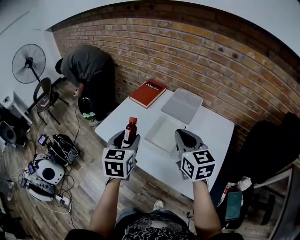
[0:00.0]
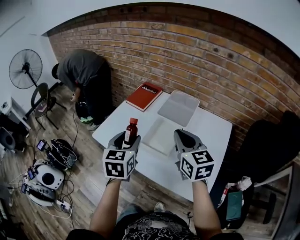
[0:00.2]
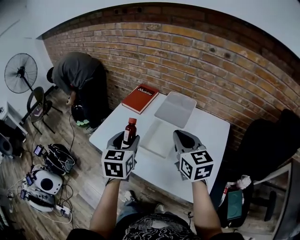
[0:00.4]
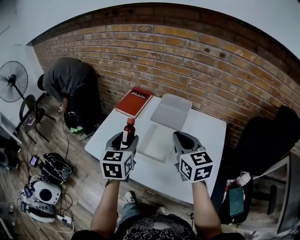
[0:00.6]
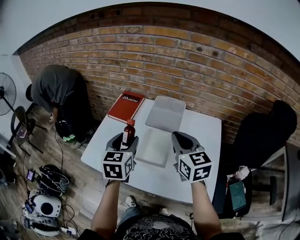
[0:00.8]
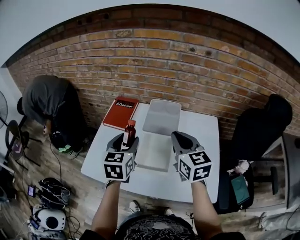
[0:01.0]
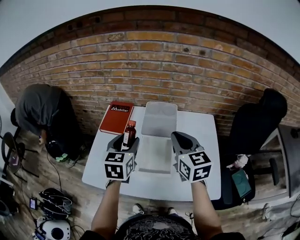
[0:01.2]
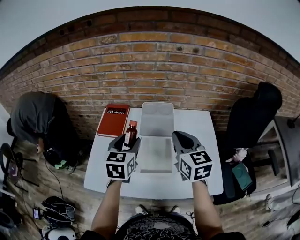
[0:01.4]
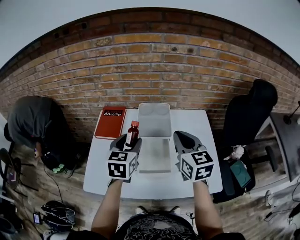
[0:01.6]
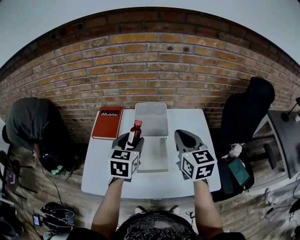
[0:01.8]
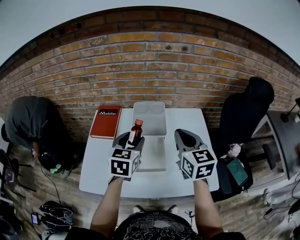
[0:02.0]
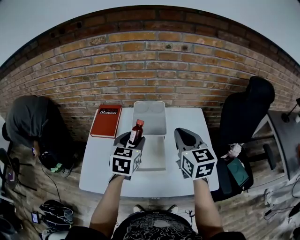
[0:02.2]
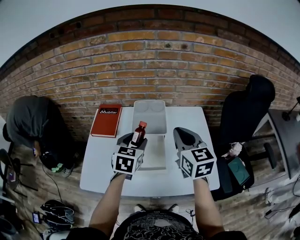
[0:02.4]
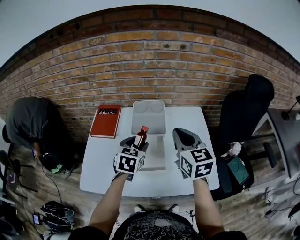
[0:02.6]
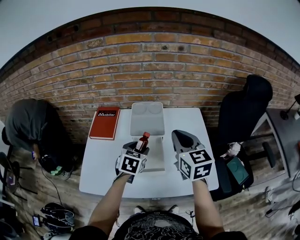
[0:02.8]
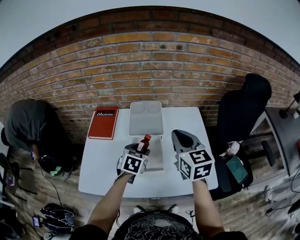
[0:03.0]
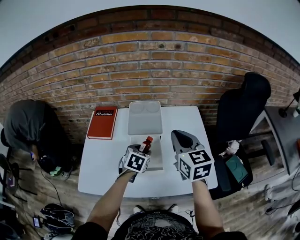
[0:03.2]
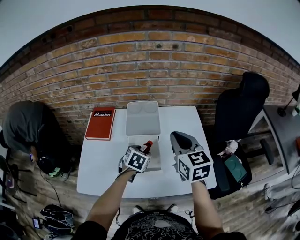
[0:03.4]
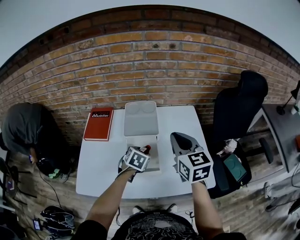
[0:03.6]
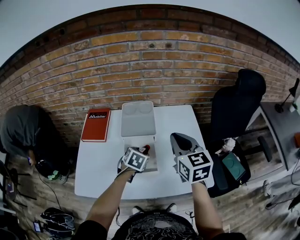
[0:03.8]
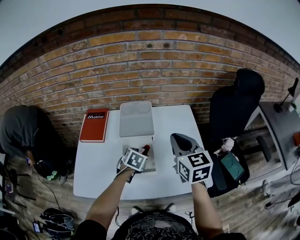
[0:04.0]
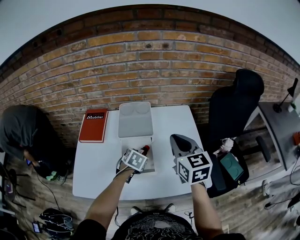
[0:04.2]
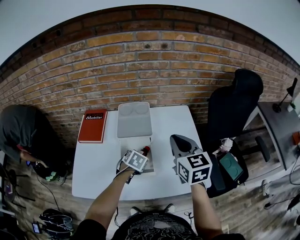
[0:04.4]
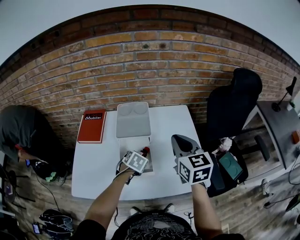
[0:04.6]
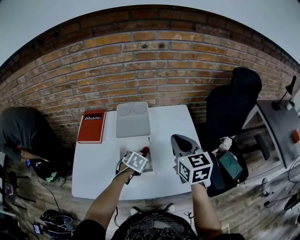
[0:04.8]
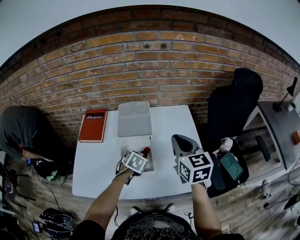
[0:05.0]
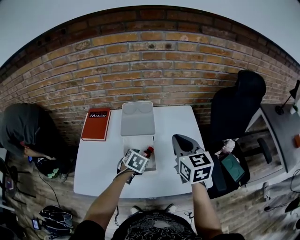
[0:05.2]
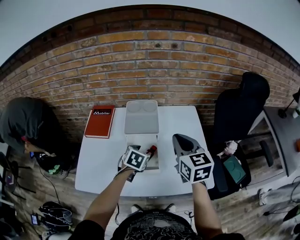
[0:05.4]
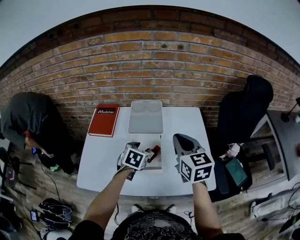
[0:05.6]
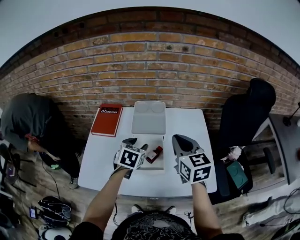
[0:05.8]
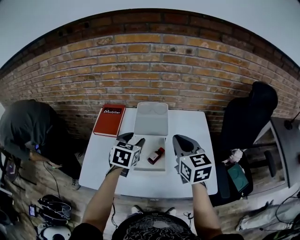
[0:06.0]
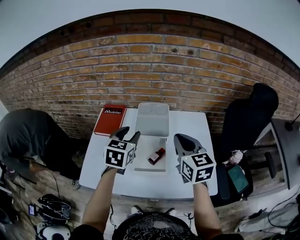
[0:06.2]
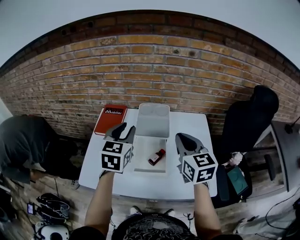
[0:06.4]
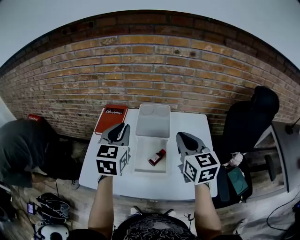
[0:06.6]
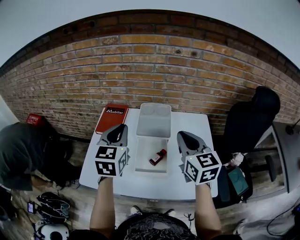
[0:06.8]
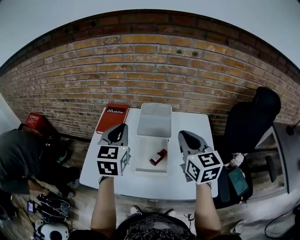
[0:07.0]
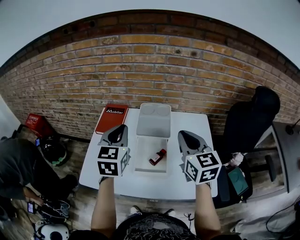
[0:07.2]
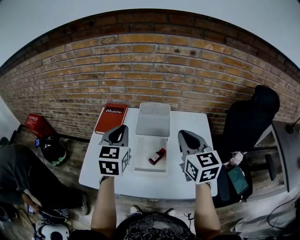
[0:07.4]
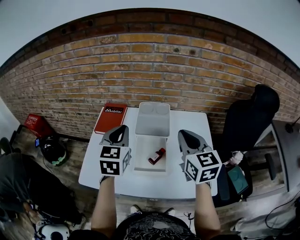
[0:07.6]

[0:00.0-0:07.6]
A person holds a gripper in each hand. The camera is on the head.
0:00.0 to 0:01.6: The left gripper moves roughly 20 cm, and changes its angle by about 30 degrees, while the right gripper ends up roughly 10 cm from where it was, and changes its angle by approximately 30 degrees.
0:01.6 to 0:03.0: The left gripper goes roughly 15 cm downward and to the right, and swivels some 20 degrees.
0:03.0 to 0:04.6: The right gripper shifts approximately 5 cm to the right; the left gripper travels downward by approximately 10 cm, and rotates roughly 20 degrees.
0:04.6 to 0:06.0: The left gripper is displaced upward and to the left by about 20 cm, and turns by about 30 degrees, while the right gripper heads to the left, covering approximately 5 cm.
0:06.0 to 0:07.6: The left gripper is displaced upward and to the left by about 10 cm, turns by roughly 20 degrees, and closes up.

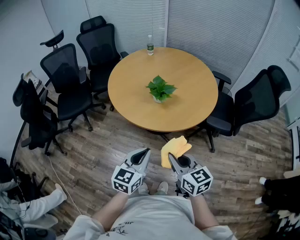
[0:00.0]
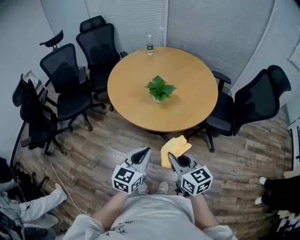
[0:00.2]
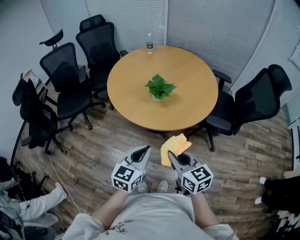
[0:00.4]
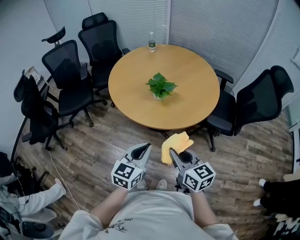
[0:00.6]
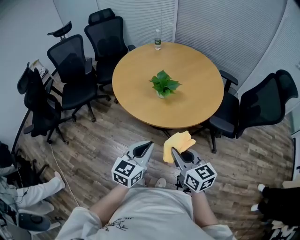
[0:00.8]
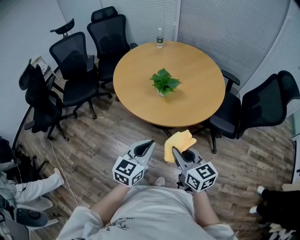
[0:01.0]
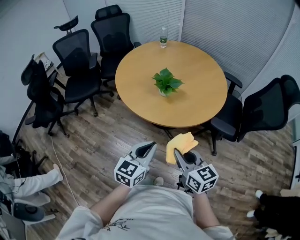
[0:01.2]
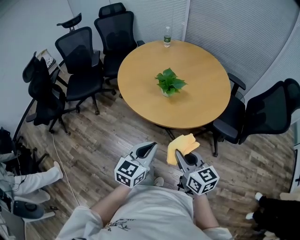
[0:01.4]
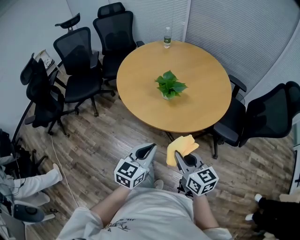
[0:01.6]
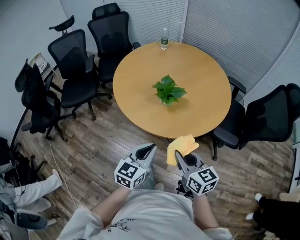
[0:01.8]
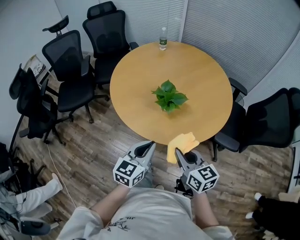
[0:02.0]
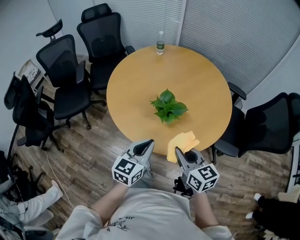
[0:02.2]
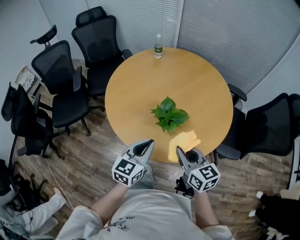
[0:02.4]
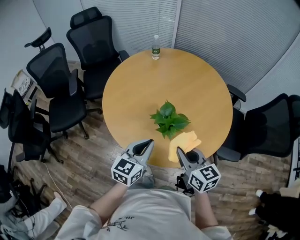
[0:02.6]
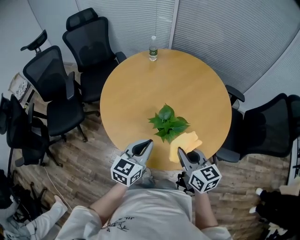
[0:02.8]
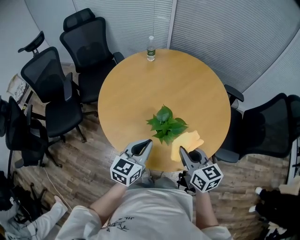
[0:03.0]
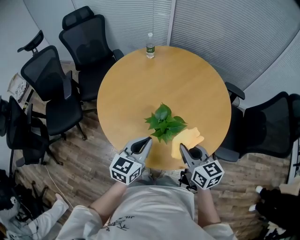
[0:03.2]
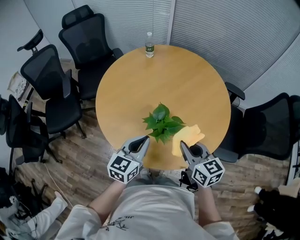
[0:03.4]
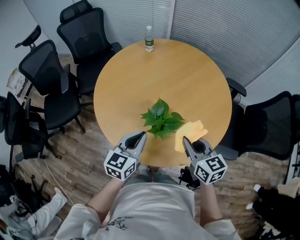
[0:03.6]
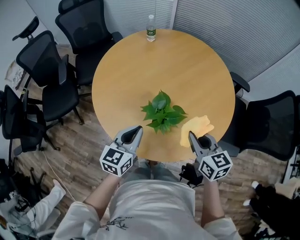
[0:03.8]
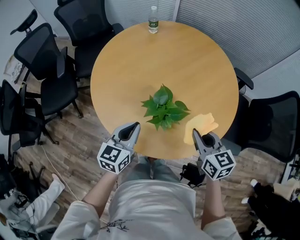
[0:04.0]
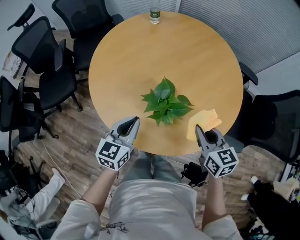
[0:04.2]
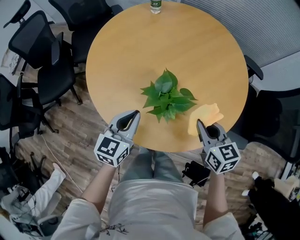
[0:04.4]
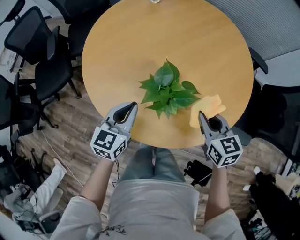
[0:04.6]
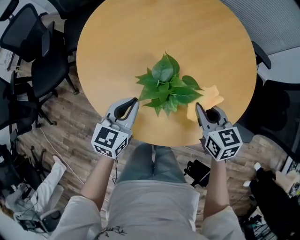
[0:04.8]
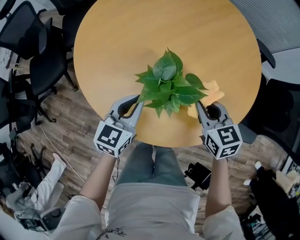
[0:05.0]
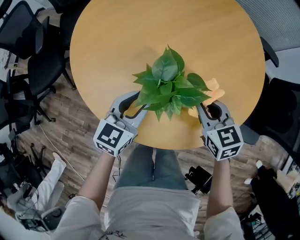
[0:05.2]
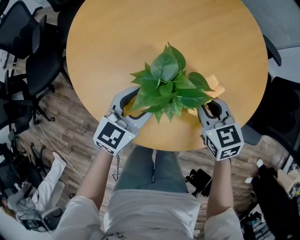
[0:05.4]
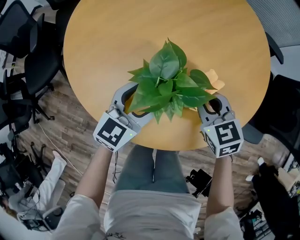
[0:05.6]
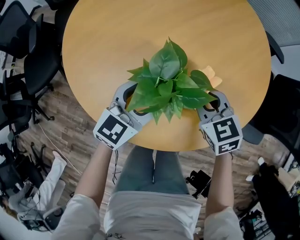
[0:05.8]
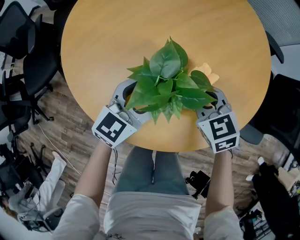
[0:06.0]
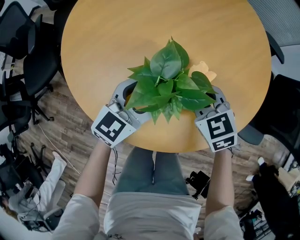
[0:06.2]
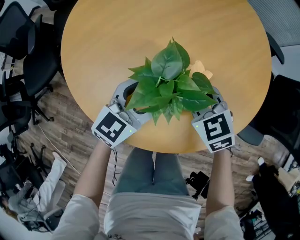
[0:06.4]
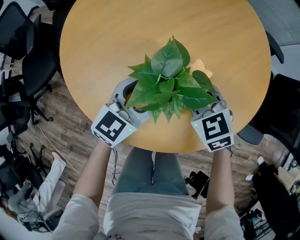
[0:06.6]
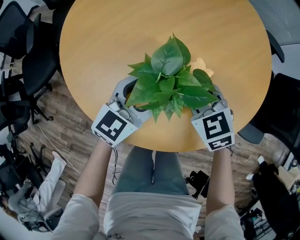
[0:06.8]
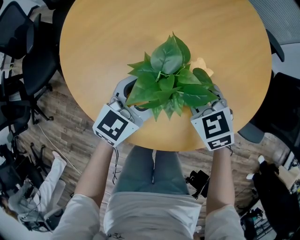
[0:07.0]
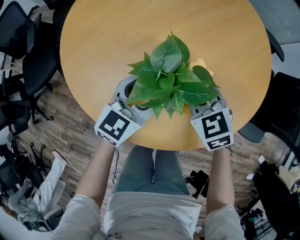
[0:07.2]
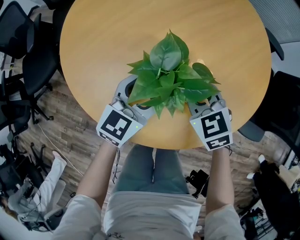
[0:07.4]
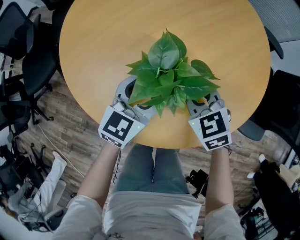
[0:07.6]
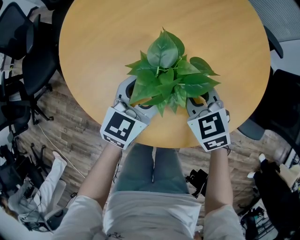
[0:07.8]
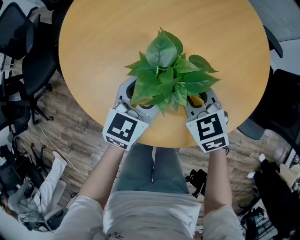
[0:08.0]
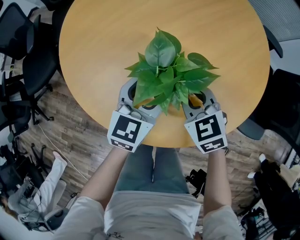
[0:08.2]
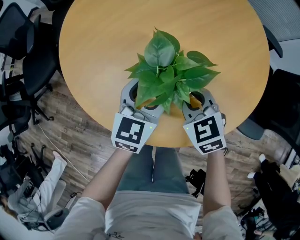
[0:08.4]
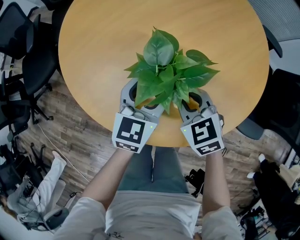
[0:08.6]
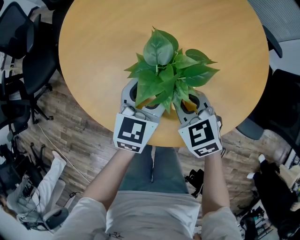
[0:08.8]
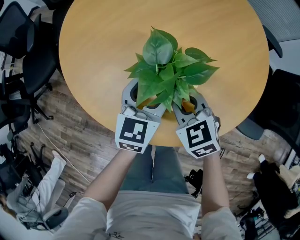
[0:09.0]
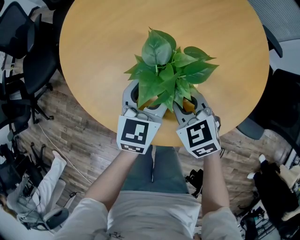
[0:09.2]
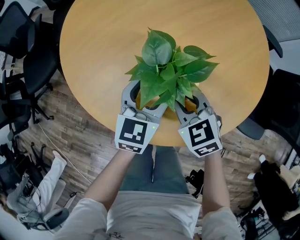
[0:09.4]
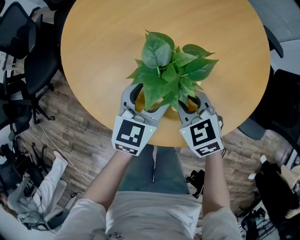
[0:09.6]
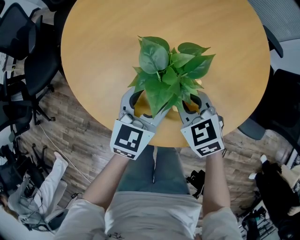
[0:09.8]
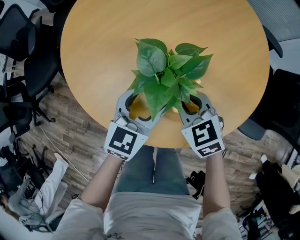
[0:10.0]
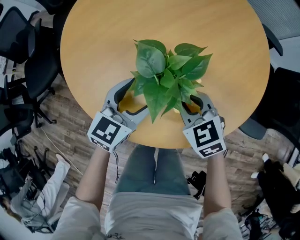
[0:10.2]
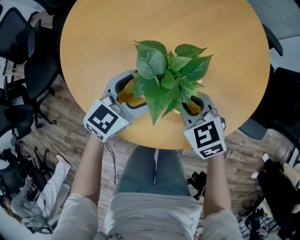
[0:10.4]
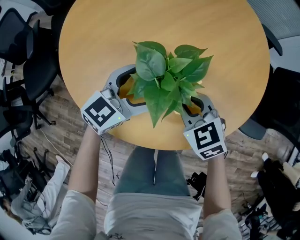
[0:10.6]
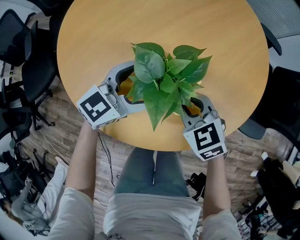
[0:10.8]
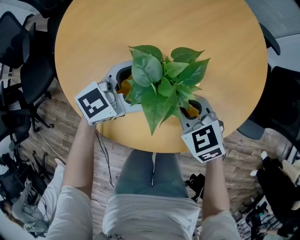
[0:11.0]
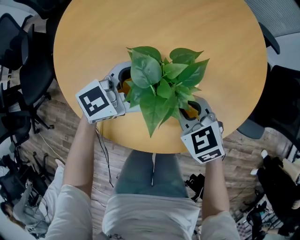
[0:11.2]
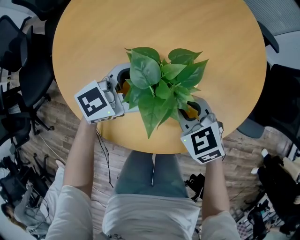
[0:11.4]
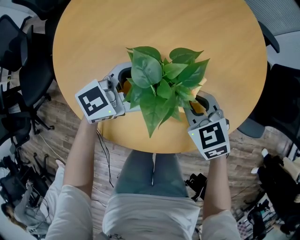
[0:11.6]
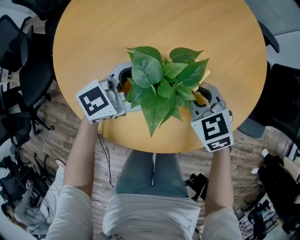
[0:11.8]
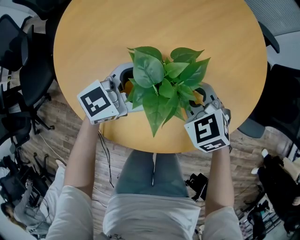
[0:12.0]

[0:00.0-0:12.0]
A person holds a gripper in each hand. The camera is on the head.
0:00.0 to 0:01.6: The left gripper moves approximately 5 cm. Meanwhile the right gripper moves approximately 5 cm.
0:01.6 to 0:03.0: Both grippers move forward, about 30 cm.
0:03.0 to 0:04.4: The right gripper heads downward, to the right and forward, covering approximately 10 cm, while the left gripper heads downward, covering approximately 10 cm.
0:04.4 to 0:06.0: The right gripper shifts approximately 15 cm downward, forward and to the left, and rotates roughly 20 degrees; the left gripper goes about 15 cm downward, to the right and forward, turns by approximately 20 degrees, and opens up.
0:06.0 to 0:07.6: There are only small adjustments of the grippers.
0:07.6 to 0:09.0: The grippers stay close to where they were, moving slightly.
0:09.0 to 0:10.4: The left gripper swivels some 30 degrees.
0:10.4 to 0:12.0: The left gripper rotates about 20 degrees.

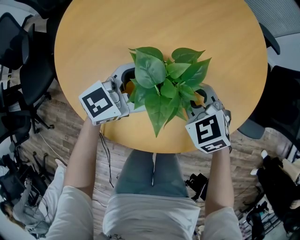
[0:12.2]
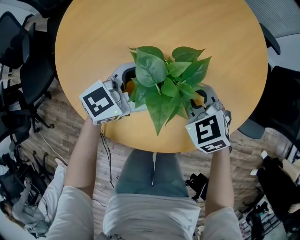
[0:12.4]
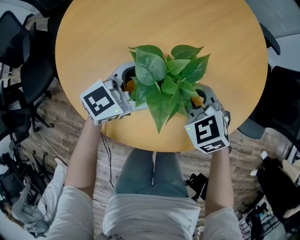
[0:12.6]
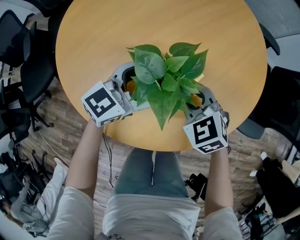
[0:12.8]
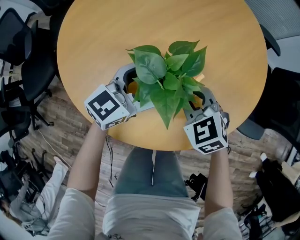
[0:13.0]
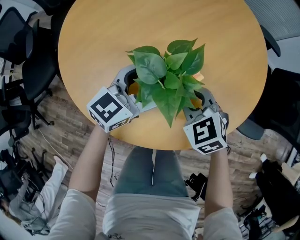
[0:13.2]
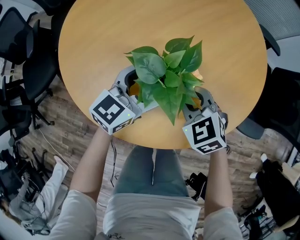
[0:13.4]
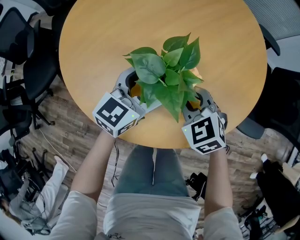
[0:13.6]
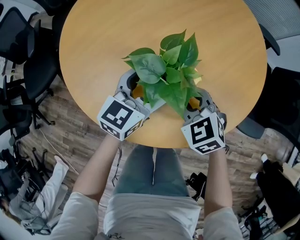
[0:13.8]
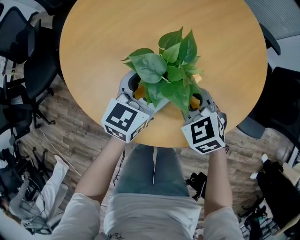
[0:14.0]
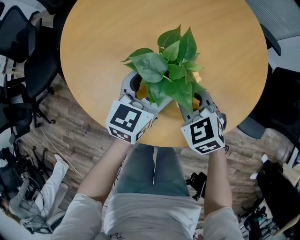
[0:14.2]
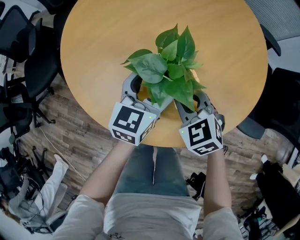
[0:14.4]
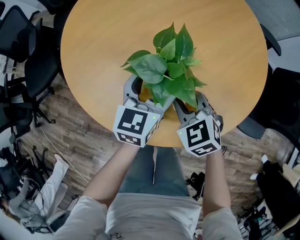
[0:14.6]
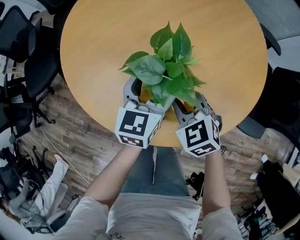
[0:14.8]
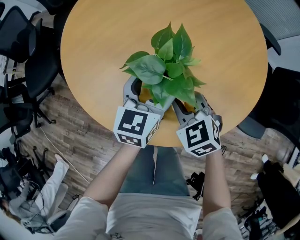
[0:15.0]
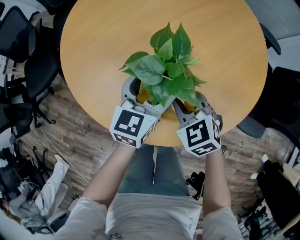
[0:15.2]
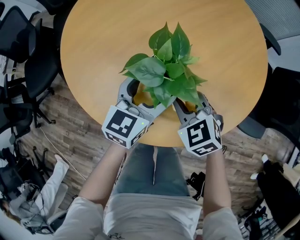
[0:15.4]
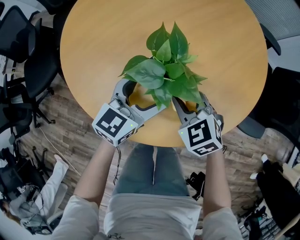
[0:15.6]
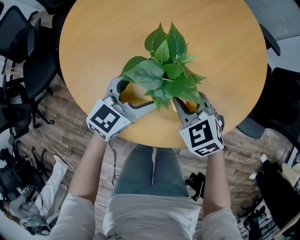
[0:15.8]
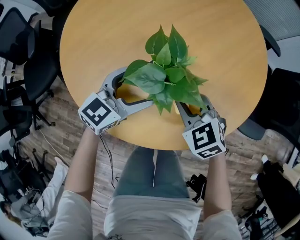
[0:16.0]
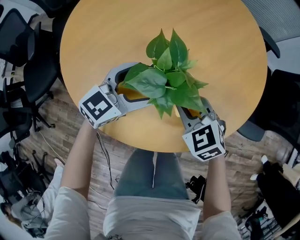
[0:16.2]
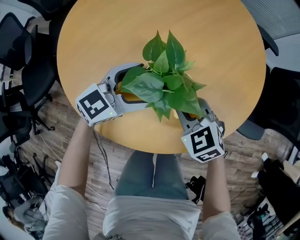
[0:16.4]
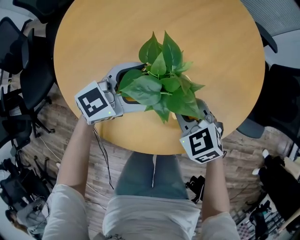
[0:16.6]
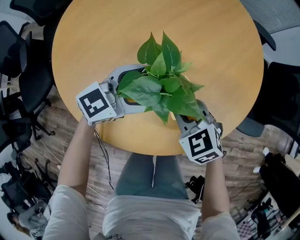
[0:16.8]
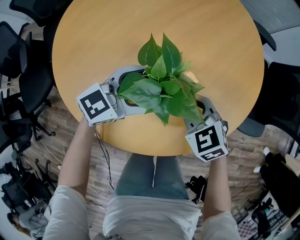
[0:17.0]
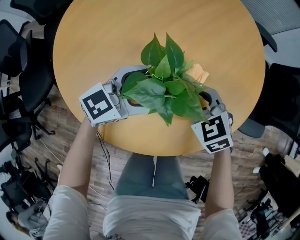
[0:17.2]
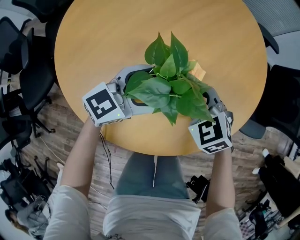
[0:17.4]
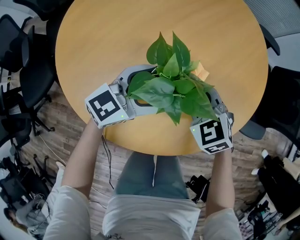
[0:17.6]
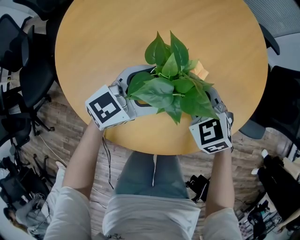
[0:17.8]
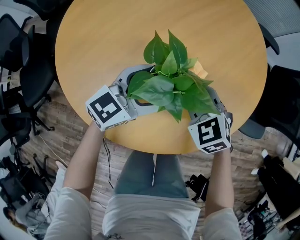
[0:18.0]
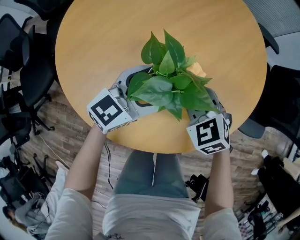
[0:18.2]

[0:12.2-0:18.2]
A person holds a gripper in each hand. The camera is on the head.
0:12.2 to 0:13.8: The left gripper rotates some 30 degrees.
0:13.8 to 0:15.2: The grippers stay close to where they were, moving slightly.
0:15.2 to 0:16.6: The left gripper swivels some 40 degrees.
0:16.6 to 0:18.2: The grippers stay close to where they were, moving slightly.
